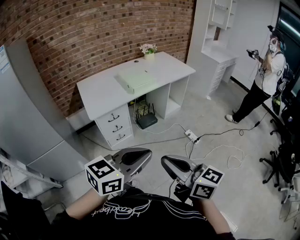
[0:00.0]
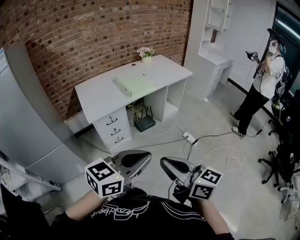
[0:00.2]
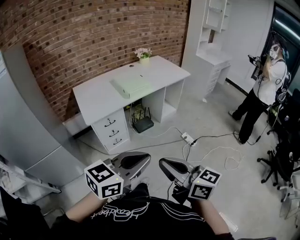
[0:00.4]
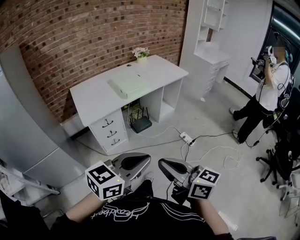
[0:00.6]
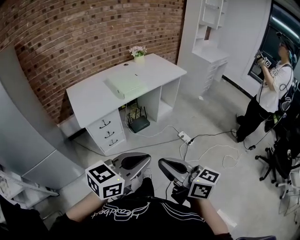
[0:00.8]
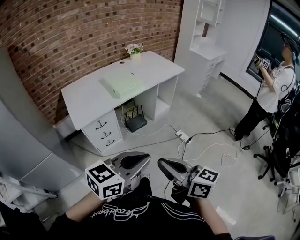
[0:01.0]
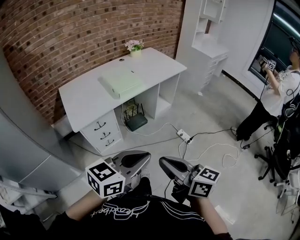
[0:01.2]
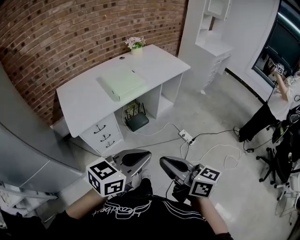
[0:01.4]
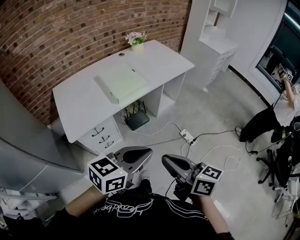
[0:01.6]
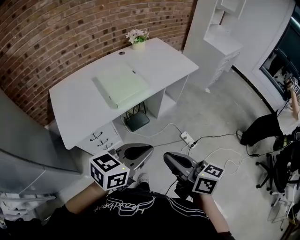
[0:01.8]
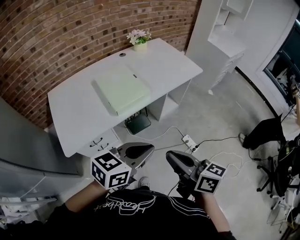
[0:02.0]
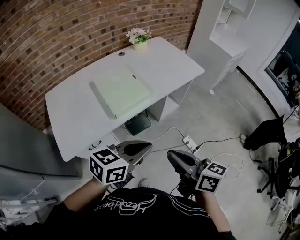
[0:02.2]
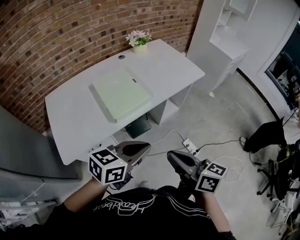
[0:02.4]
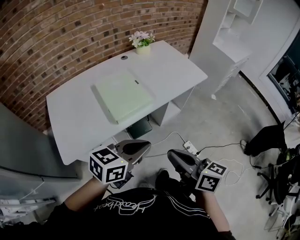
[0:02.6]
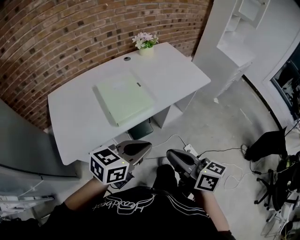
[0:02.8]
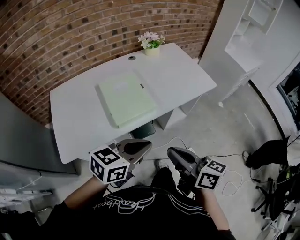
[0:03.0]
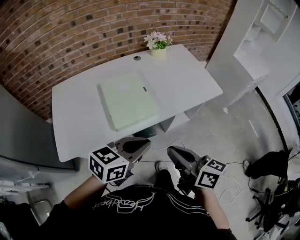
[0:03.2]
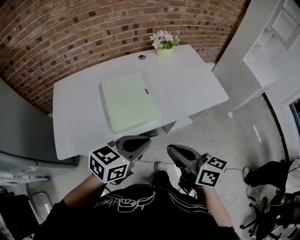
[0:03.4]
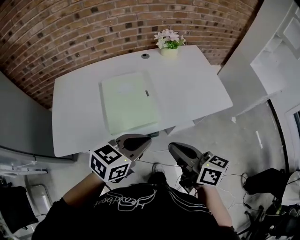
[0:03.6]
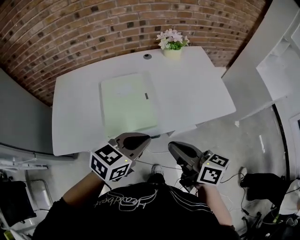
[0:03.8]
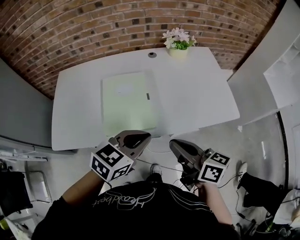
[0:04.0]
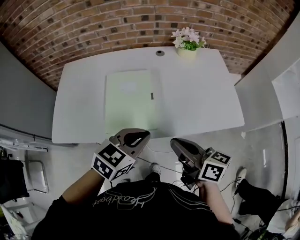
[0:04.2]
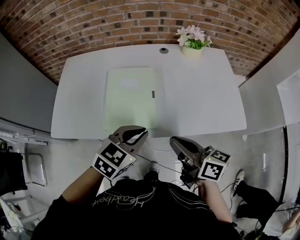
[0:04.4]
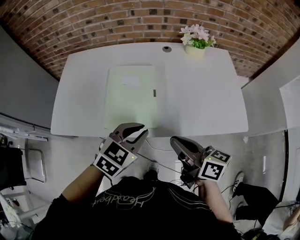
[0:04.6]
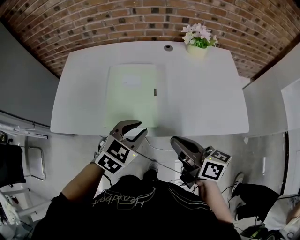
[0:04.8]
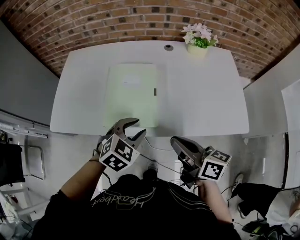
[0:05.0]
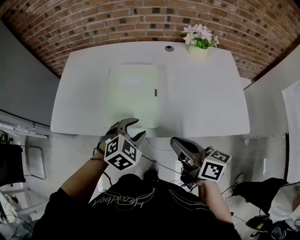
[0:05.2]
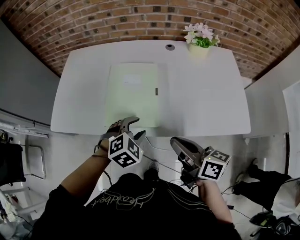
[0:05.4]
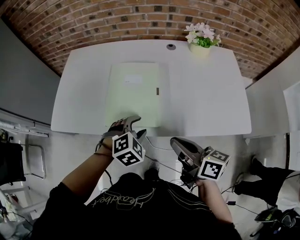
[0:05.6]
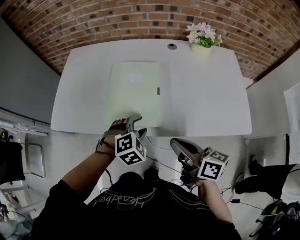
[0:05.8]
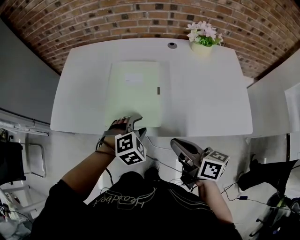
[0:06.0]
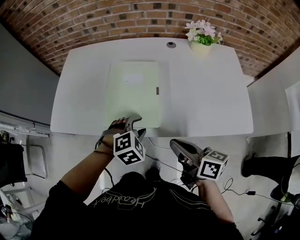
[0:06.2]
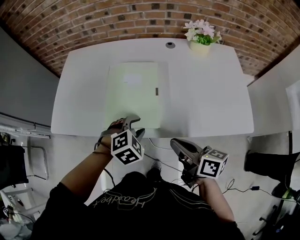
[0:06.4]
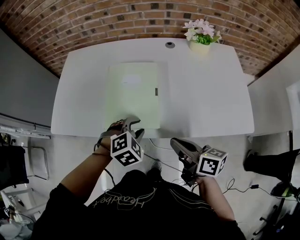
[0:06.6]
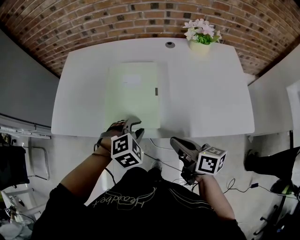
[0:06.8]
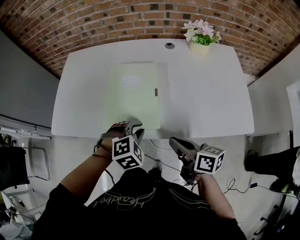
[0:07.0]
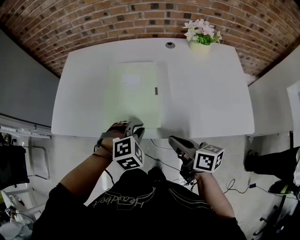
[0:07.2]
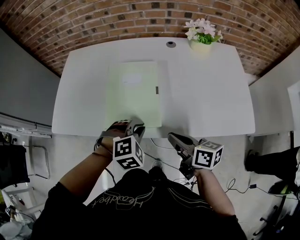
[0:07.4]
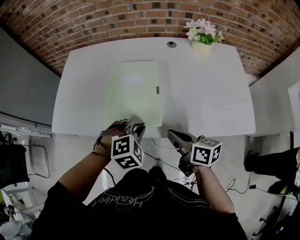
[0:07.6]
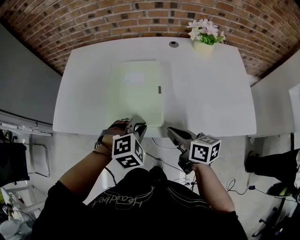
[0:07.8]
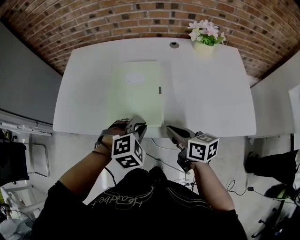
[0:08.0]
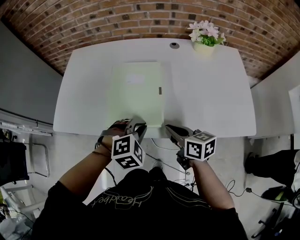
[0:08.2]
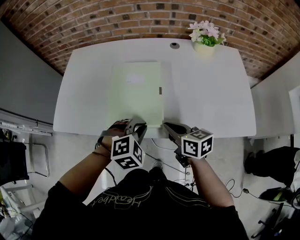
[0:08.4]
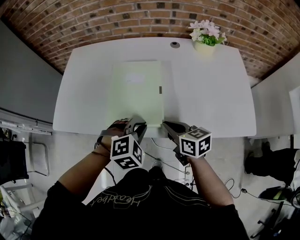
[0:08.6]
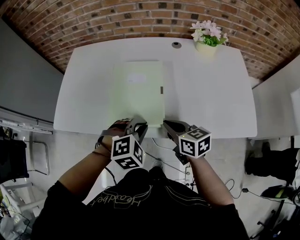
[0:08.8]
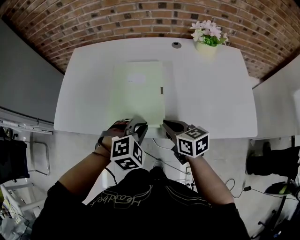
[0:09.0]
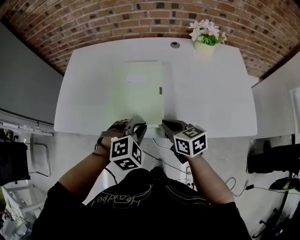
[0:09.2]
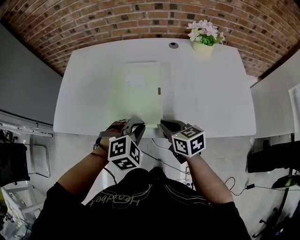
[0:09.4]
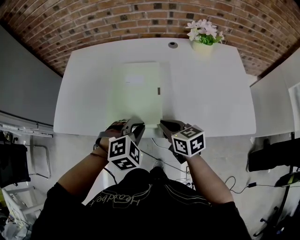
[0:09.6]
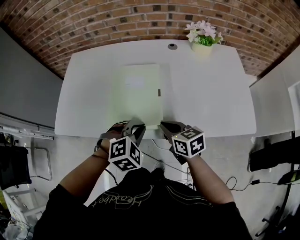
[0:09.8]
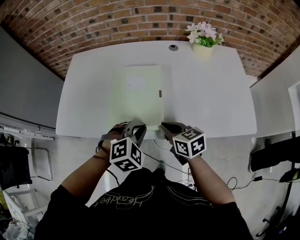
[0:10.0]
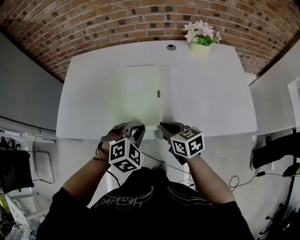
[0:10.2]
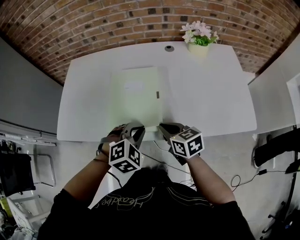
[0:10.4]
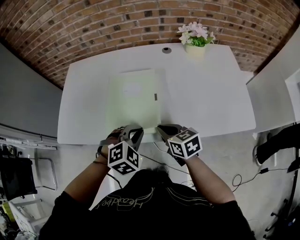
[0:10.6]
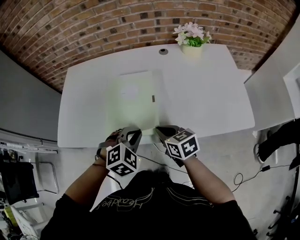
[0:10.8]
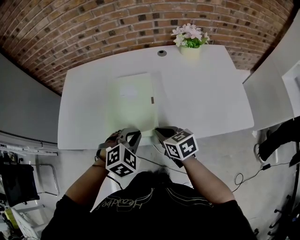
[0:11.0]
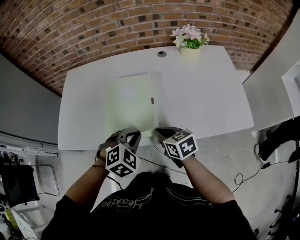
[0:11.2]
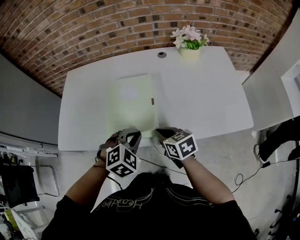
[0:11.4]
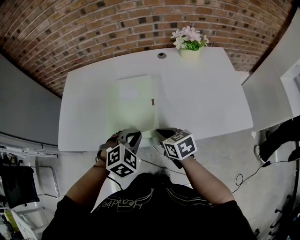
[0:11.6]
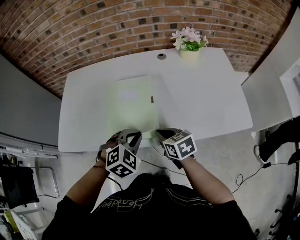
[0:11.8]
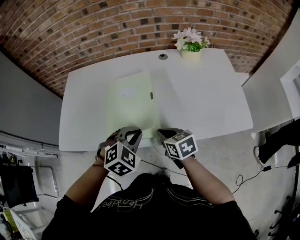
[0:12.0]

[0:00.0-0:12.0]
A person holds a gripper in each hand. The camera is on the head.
0:00.0 to 0:01.6: The grippers both shift forward by roughly 25 cm.
0:01.6 to 0:03.0: Both grippers travel together forward, some 25 cm.
0:03.0 to 0:04.4: The right gripper ends up some 25 cm from where it was, and turns by about 30 degrees. The left gripper ends up approximately 20 cm from where it was, and rotates roughly 40 degrees.
0:04.4 to 0:06.0: The right gripper moves downward, about 5 cm. The left gripper moves downward, about 10 cm, swivels some 40 degrees, and opens.
0:06.0 to 0:07.6: The right gripper moves downward, approximately 5 cm. Meanwhile the left gripper closes its fingers.
0:07.6 to 0:09.0: The right gripper ends up some 5 cm from where it was.
0:09.0 to 0:12.0: The grippers stay close to where they were, moving slightly.

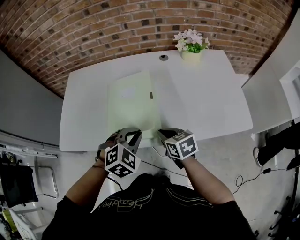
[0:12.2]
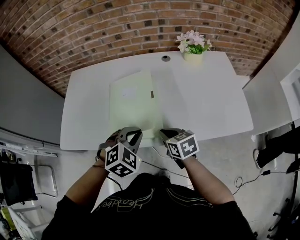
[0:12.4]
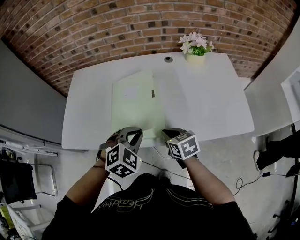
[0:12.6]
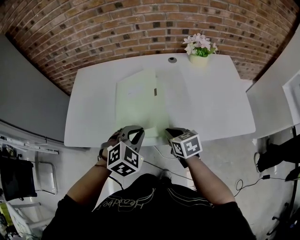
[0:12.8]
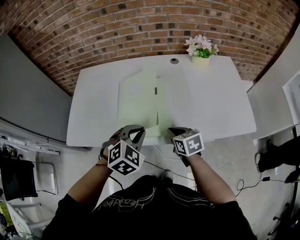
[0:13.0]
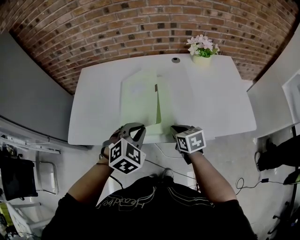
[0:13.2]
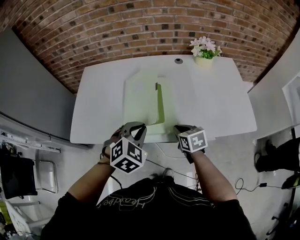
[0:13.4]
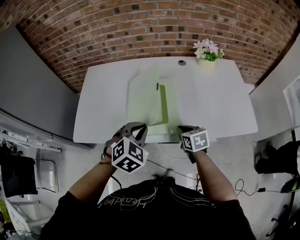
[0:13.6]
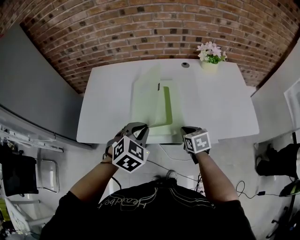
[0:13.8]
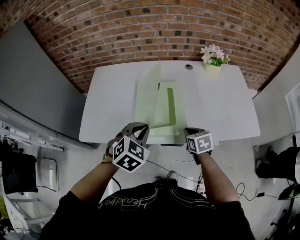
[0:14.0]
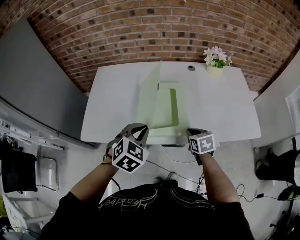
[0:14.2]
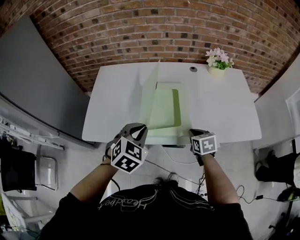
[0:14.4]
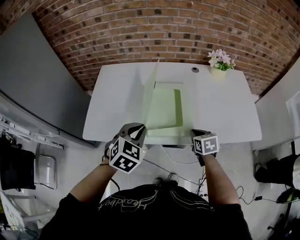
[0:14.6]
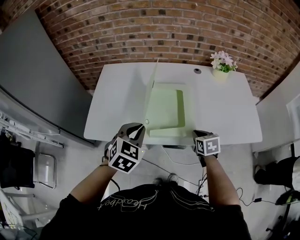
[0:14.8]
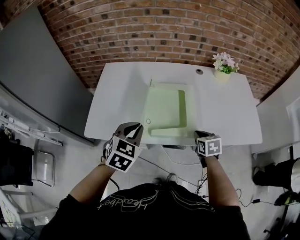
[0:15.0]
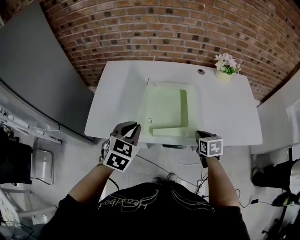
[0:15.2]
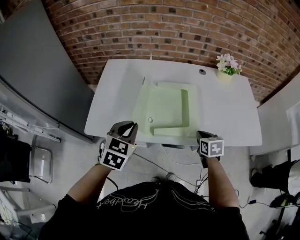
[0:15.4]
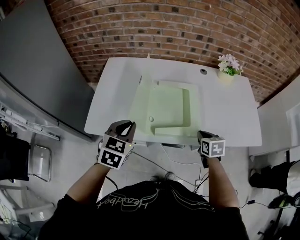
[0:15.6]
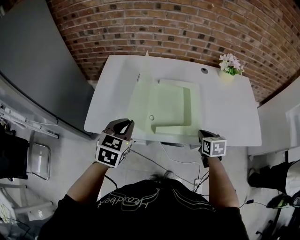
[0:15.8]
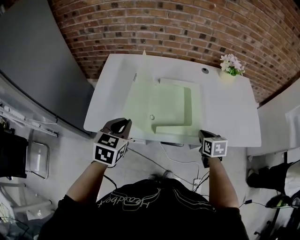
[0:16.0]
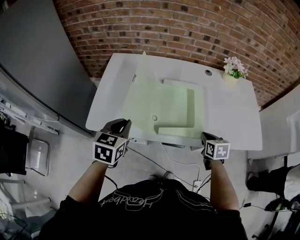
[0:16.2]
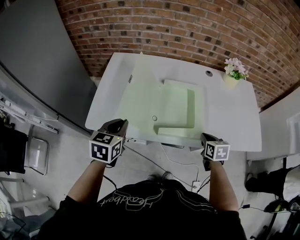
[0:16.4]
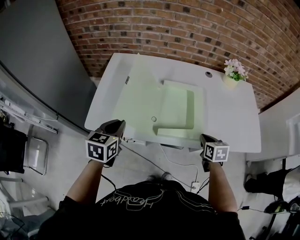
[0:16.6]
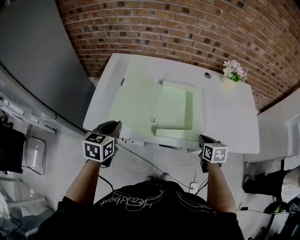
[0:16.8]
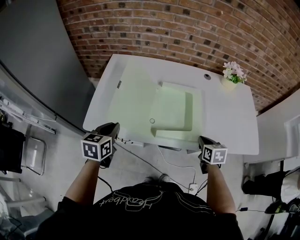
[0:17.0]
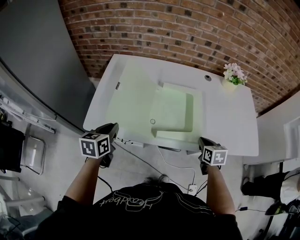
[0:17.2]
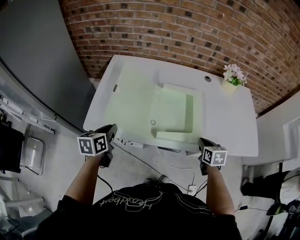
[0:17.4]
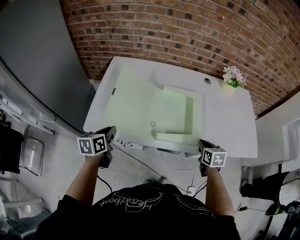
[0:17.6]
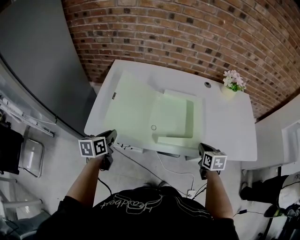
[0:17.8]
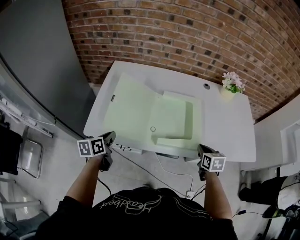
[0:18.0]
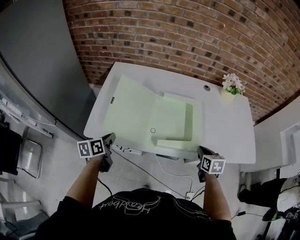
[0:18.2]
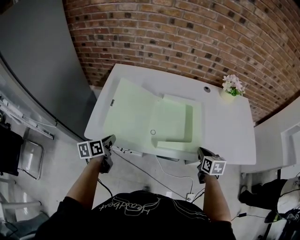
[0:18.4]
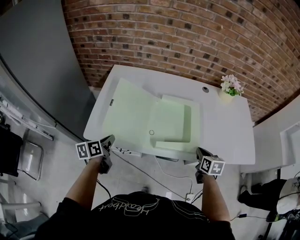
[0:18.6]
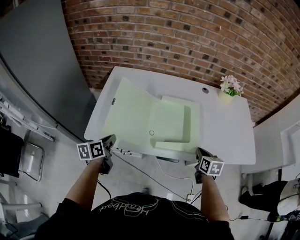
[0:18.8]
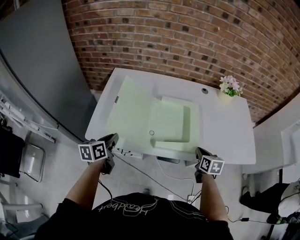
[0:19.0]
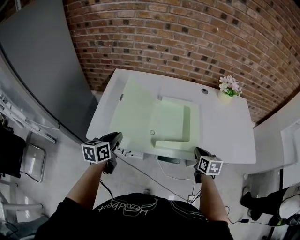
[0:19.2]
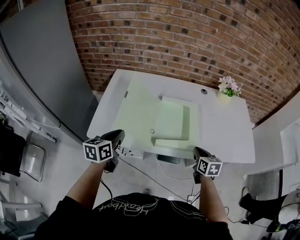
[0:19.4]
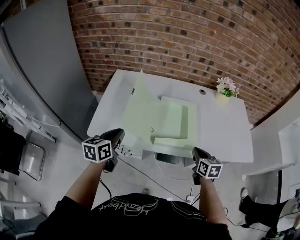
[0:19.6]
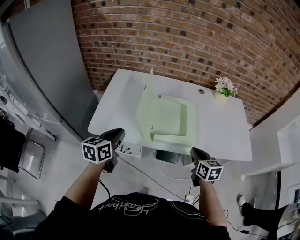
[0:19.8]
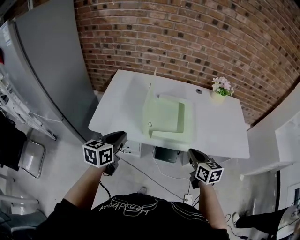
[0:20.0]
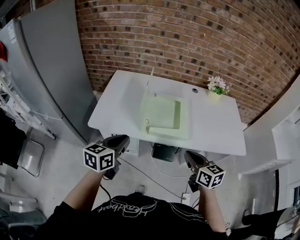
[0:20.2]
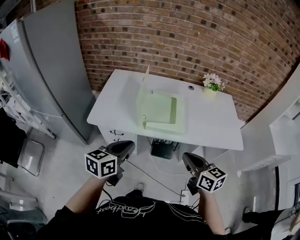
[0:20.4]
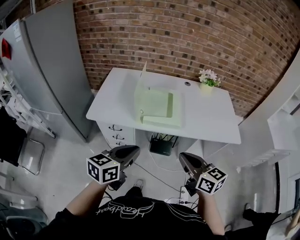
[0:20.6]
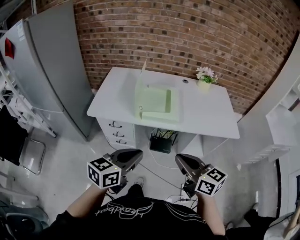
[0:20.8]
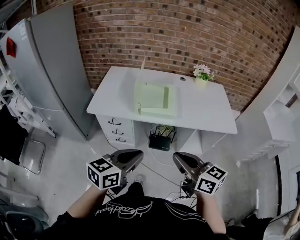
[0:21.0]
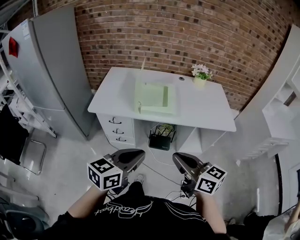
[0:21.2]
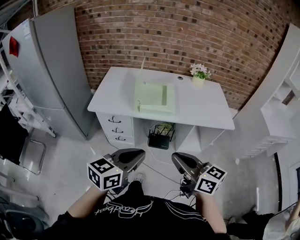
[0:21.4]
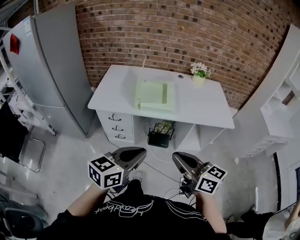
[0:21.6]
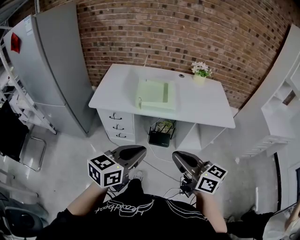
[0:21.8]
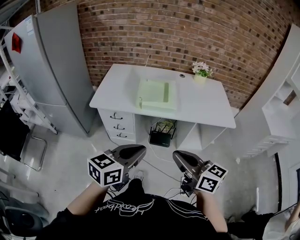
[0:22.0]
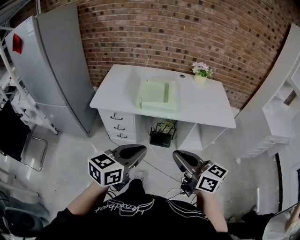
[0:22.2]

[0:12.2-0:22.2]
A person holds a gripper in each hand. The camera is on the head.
0:12.2 to 0:13.6: The left gripper travels to the left and upward by about 10 cm.
0:13.6 to 0:15.0: The left gripper is displaced to the left by approximately 10 cm, and turns by some 20 degrees.
0:15.0 to 0:16.4: The left gripper goes some 10 cm to the left, and rotates roughly 30 degrees.
0:16.4 to 0:18.0: The left gripper moves downward and to the left, some 15 cm, and rotates about 30 degrees.
0:18.0 to 0:19.4: The left gripper is displaced upward and to the right by some 10 cm.
0:19.4 to 0:20.8: The left gripper moves backward and to the right, about 35 cm, and changes its angle by approximately 20 degrees; the right gripper travels backward and upward by some 35 cm, and turns by some 40 degrees.
0:20.8 to 0:22.2: The two grippers go some 10 cm backward.

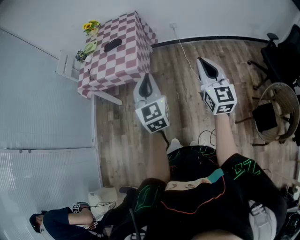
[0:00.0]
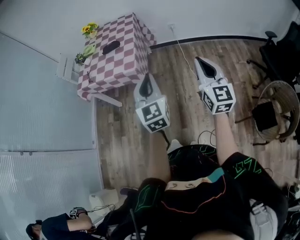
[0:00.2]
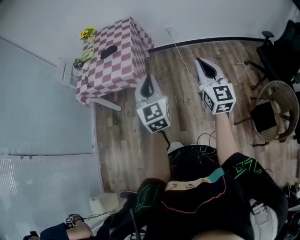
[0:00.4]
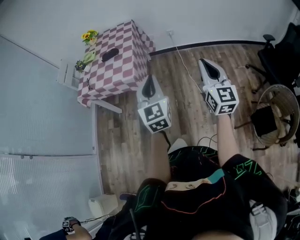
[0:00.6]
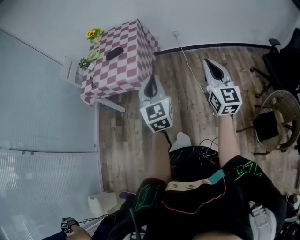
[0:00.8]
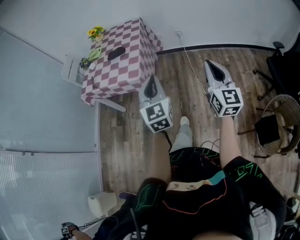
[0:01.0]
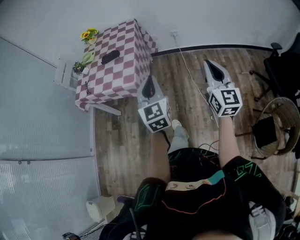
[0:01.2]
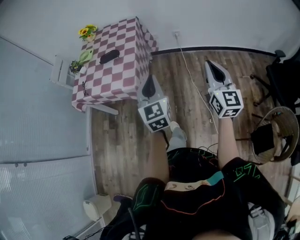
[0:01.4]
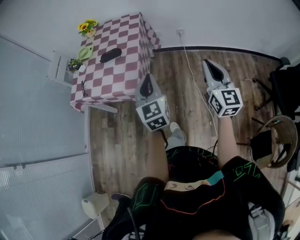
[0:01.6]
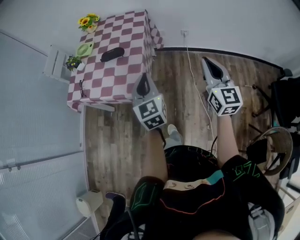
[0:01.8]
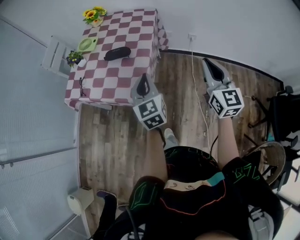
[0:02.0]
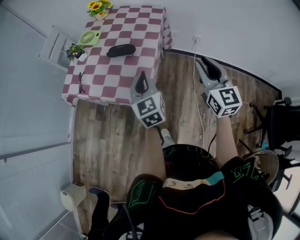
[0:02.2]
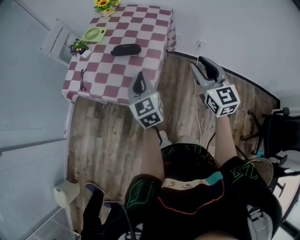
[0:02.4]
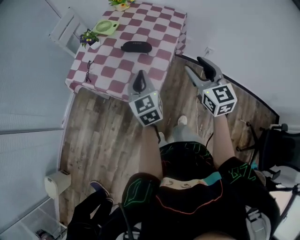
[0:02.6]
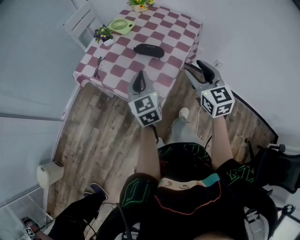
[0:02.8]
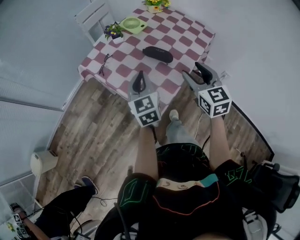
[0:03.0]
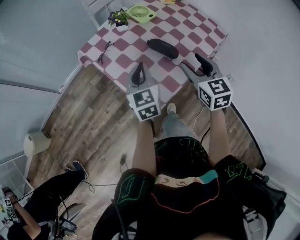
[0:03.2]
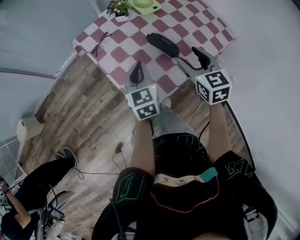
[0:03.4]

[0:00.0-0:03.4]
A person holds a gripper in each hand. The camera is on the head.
0:00.0 to 0:01.6: Both grippers move forward, some 20 cm.
0:01.6 to 0:03.4: The left gripper moves approximately 35 cm, and turns by about 50 degrees, while the right gripper ends up approximately 50 cm from where it was, swivels approximately 70 degrees, and opens its fingers.
